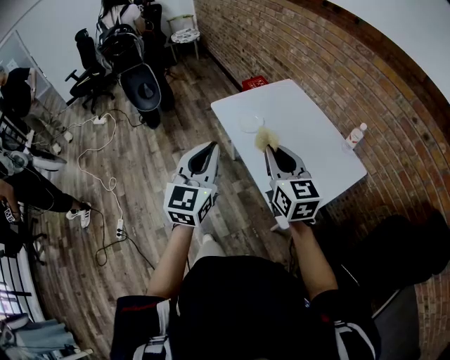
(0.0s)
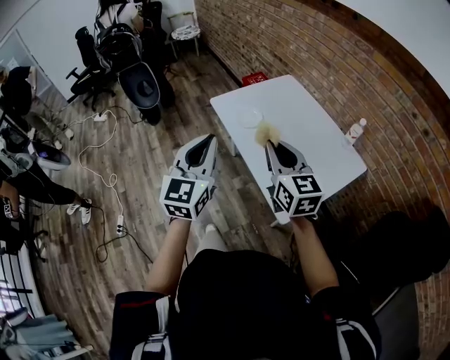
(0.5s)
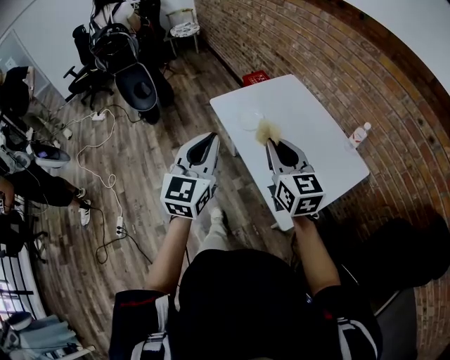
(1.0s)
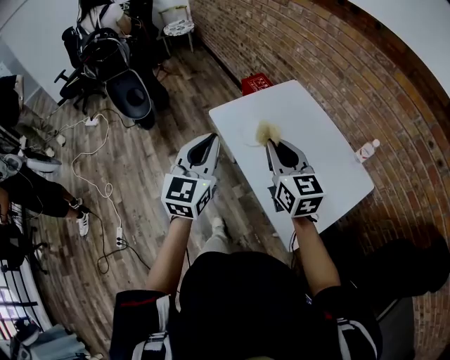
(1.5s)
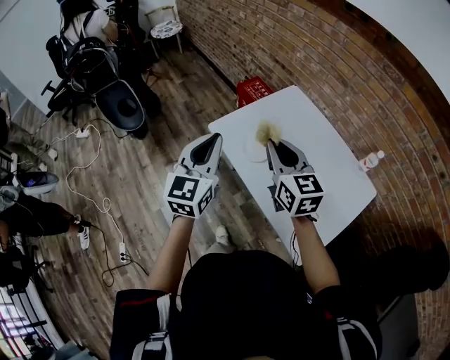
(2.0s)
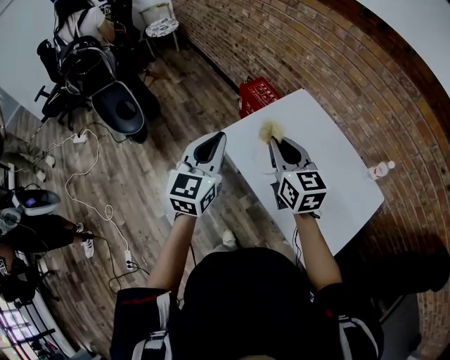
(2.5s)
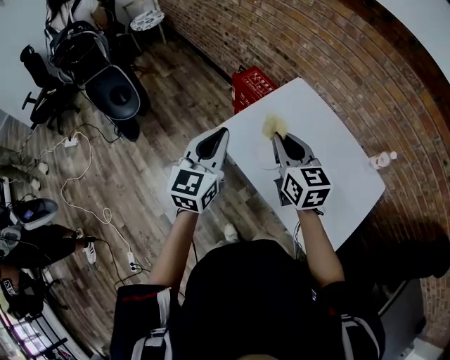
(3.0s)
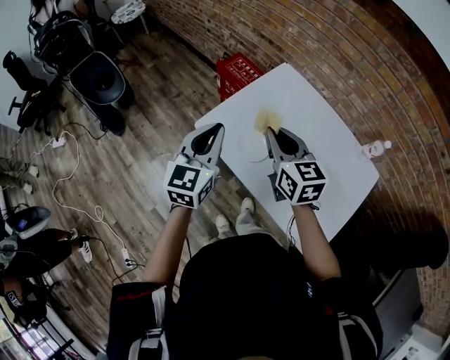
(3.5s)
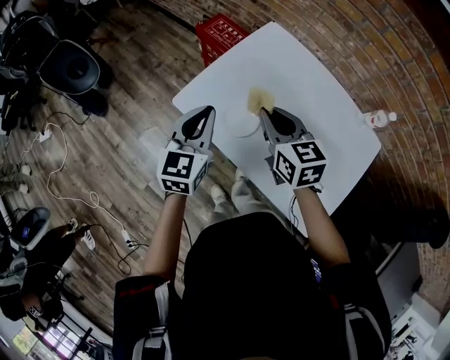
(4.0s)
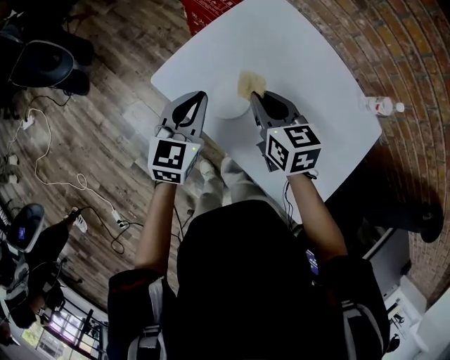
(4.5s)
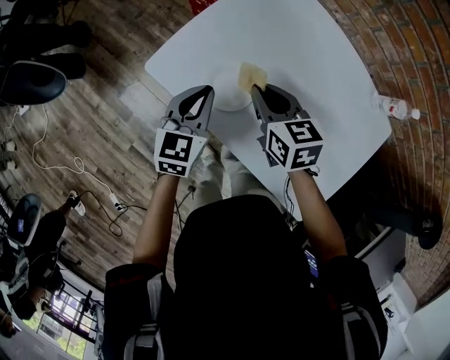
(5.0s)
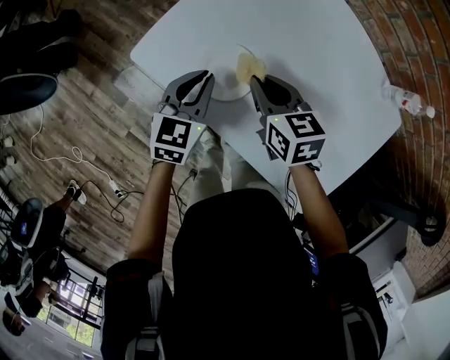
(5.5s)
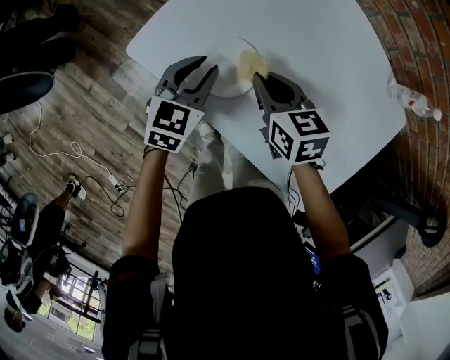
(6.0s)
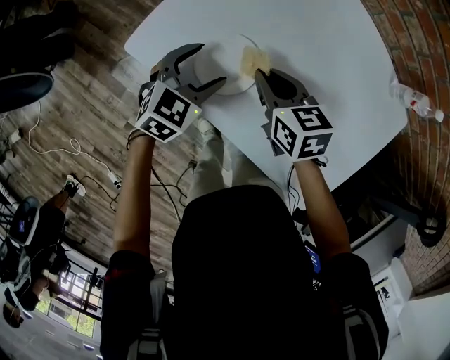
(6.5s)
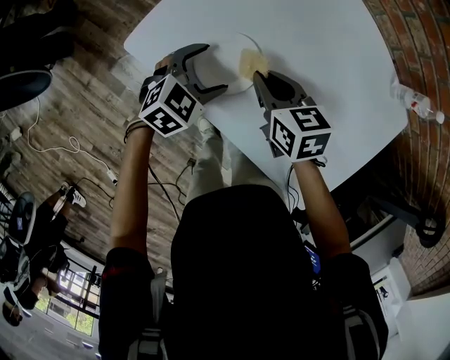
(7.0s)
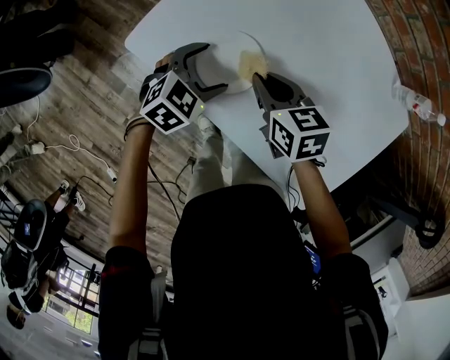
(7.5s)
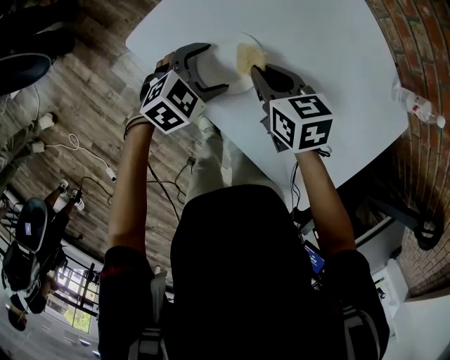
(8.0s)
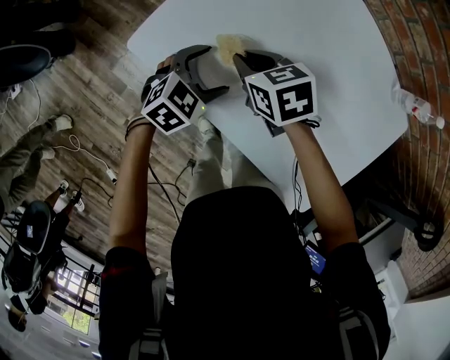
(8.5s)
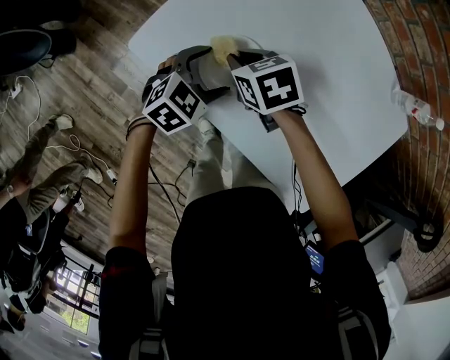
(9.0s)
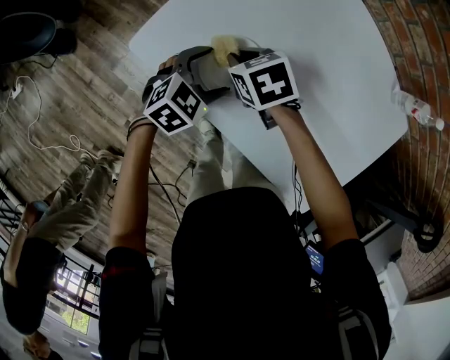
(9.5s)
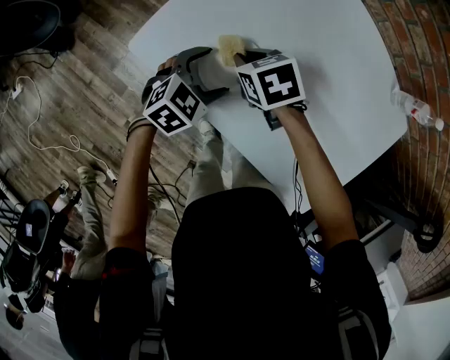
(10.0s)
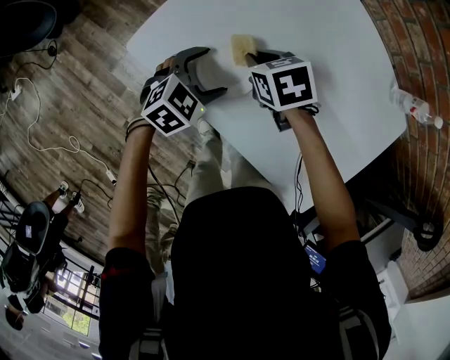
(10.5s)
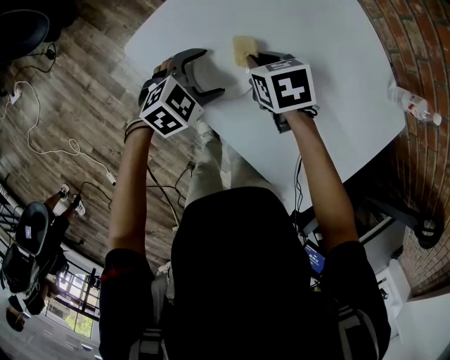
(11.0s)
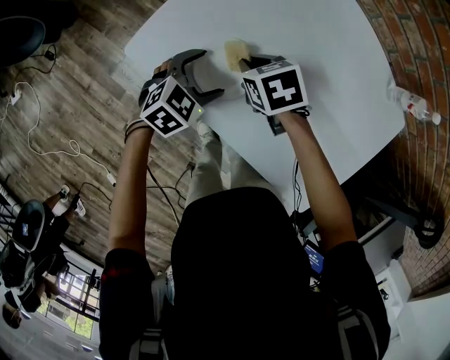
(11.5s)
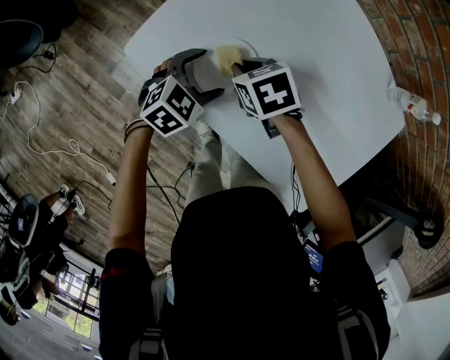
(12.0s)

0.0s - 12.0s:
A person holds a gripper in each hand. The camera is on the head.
0.0s - 2.0s: Both grippers move forward, roughly 25 cm.
2.0s - 4.0s: The left gripper shifts roughly 20 cm forward and downward. The right gripper is displaced downward and forward by roughly 20 cm.
4.0s - 6.0s: Both grippers move downward, about 20 cm. The left gripper swivels roughly 20 degrees.
6.0s - 8.0s: The left gripper is displaced downward by about 5 cm, swivels some 30 degrees, and opens up.
8.0s - 10.0s: The right gripper moves roughly 5 cm.
10.0s - 12.0s: The grippers make only small movements.

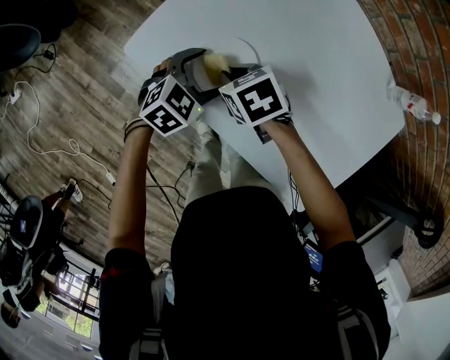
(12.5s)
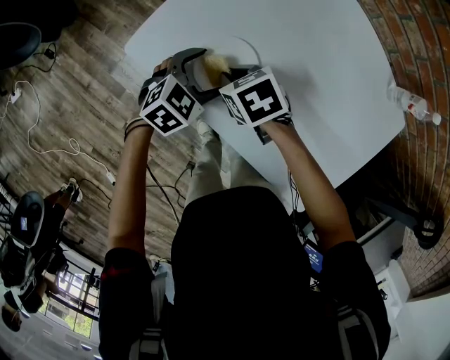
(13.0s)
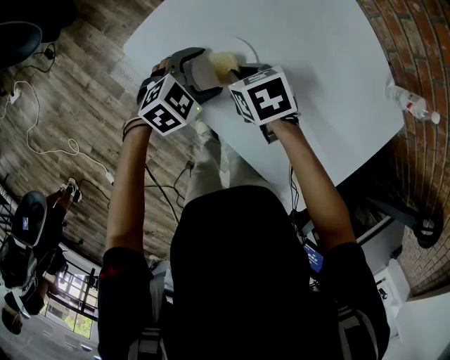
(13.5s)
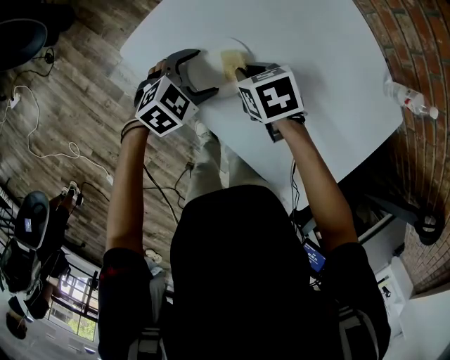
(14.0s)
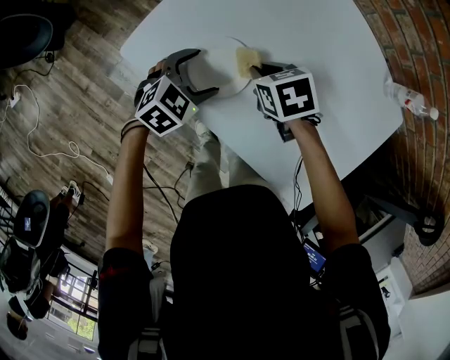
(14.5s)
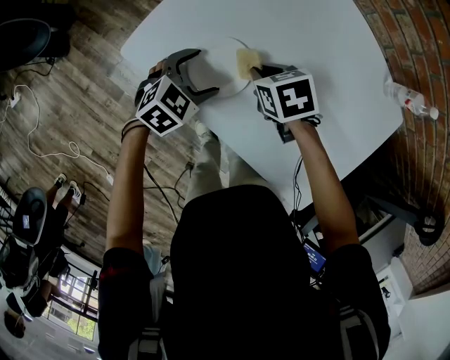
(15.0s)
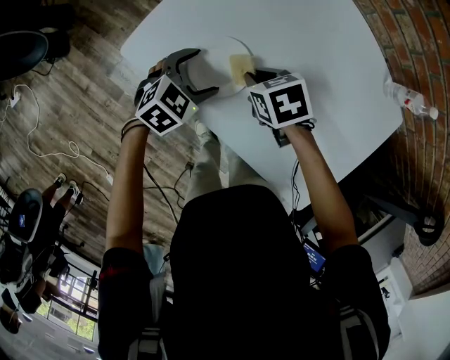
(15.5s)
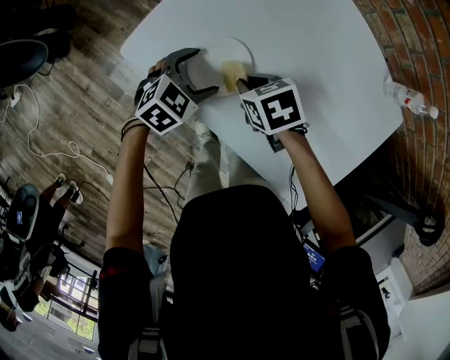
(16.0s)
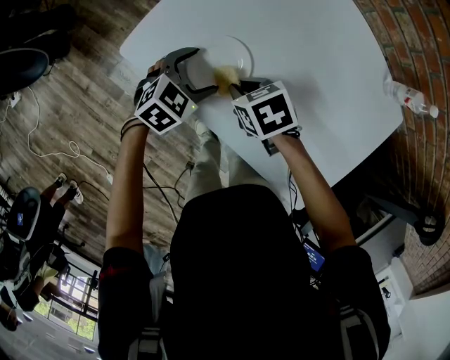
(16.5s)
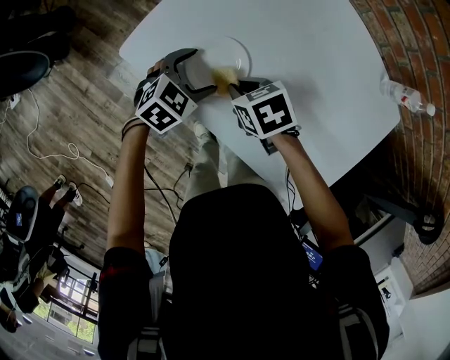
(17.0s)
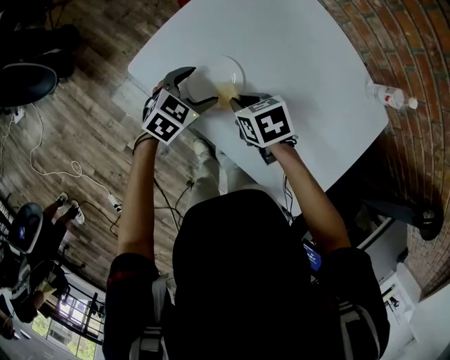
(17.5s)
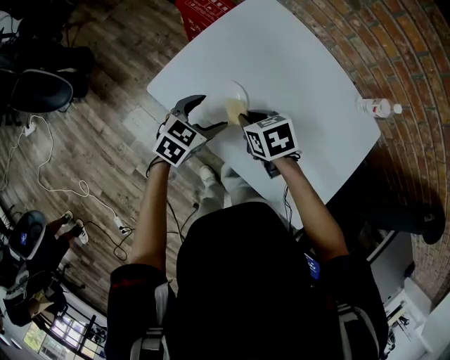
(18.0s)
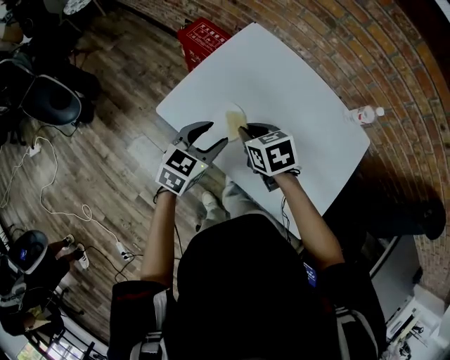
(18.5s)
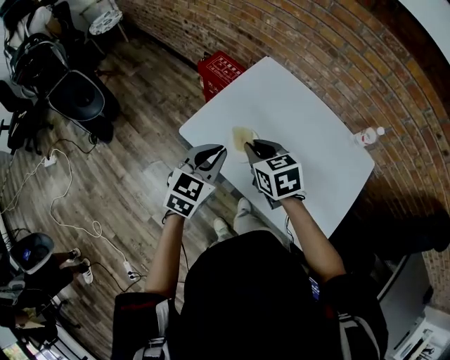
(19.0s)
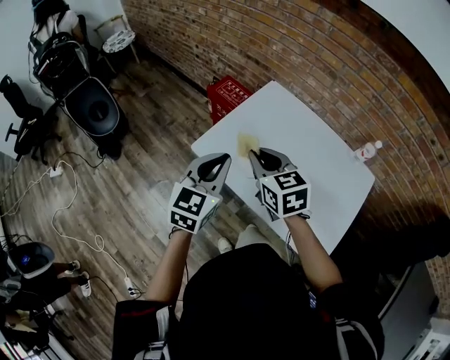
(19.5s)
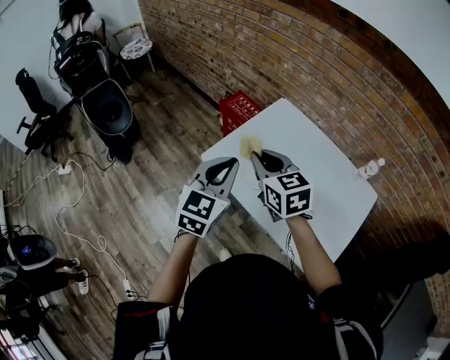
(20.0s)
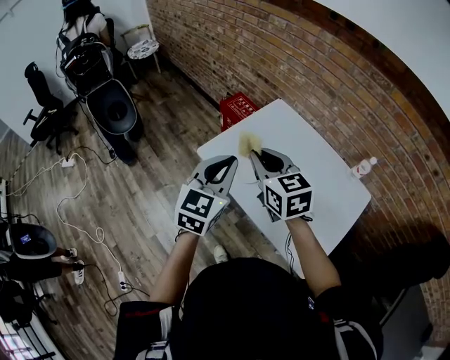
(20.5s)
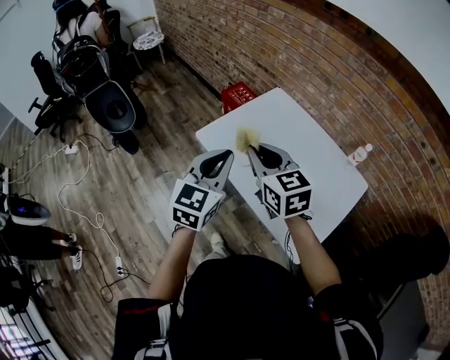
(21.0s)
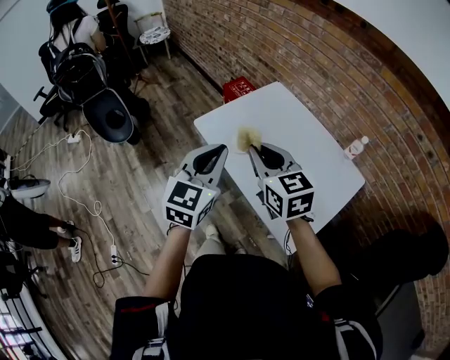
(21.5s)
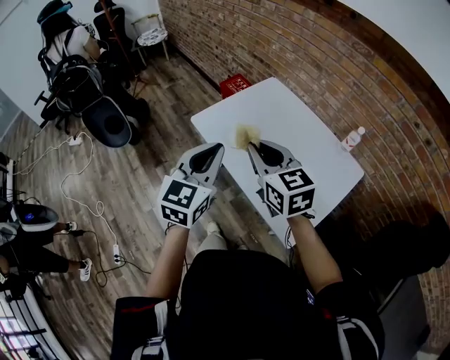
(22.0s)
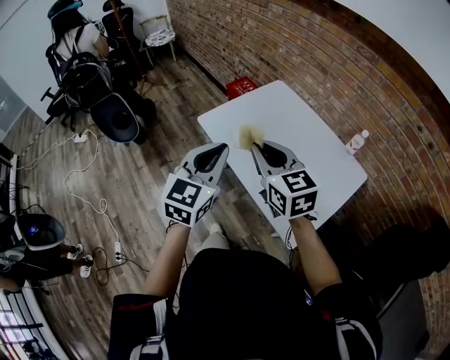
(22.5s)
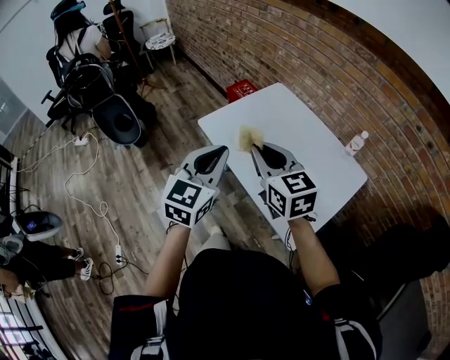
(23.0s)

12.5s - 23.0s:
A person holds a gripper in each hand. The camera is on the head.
12.5s - 14.5s: The right gripper shifts by about 10 cm.
14.5s - 16.5s: The right gripper moves approximately 5 cm.
16.5s - 19.0s: The two grippers go approximately 25 cm upward. The right gripper changes its angle by about 30 degrees, while the left gripper turns by approximately 30 degrees, and closes its fingers.
19.0s - 21.0s: Both grippers move upward and backward, some 20 cm. The left gripper rotates approximately 20 degrees; the right gripper swivels some 20 degrees.
21.0s - 23.0s: The two grippers go some 10 cm backward.

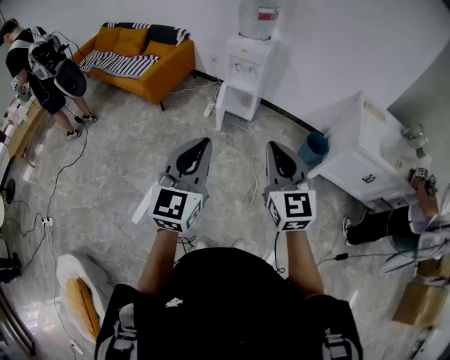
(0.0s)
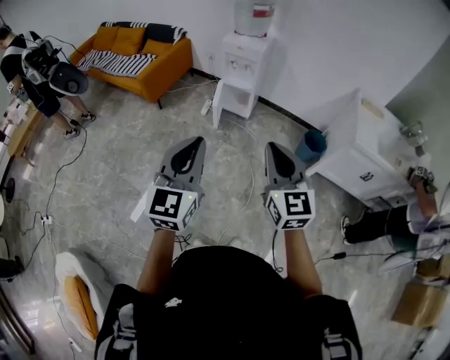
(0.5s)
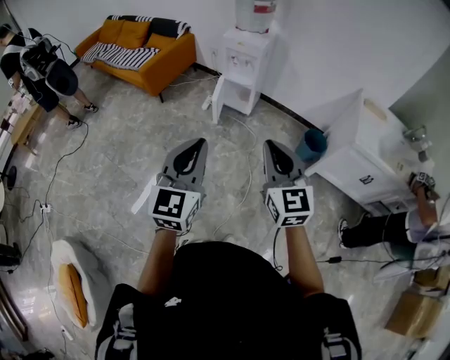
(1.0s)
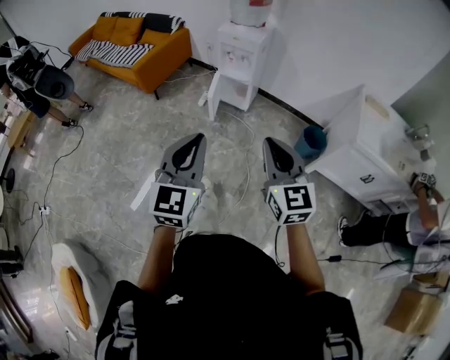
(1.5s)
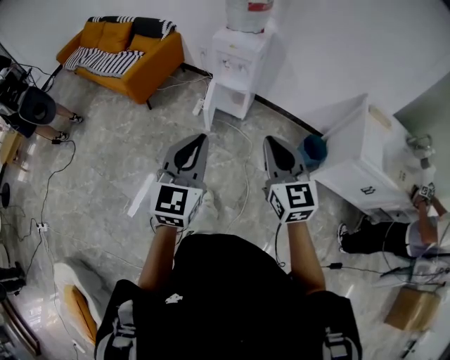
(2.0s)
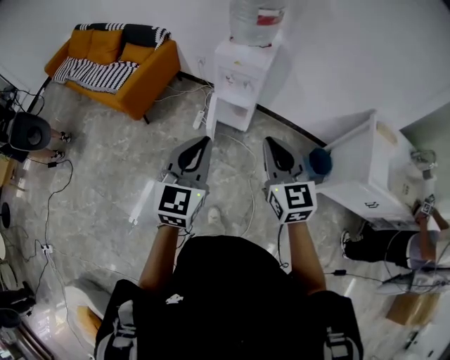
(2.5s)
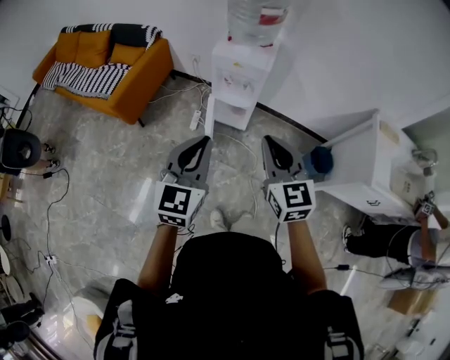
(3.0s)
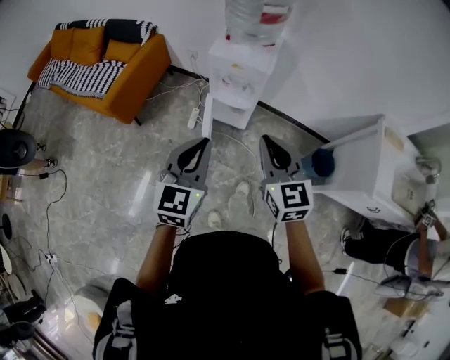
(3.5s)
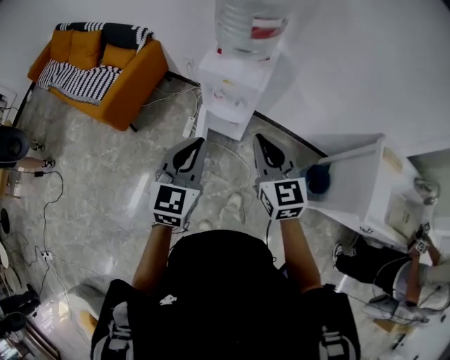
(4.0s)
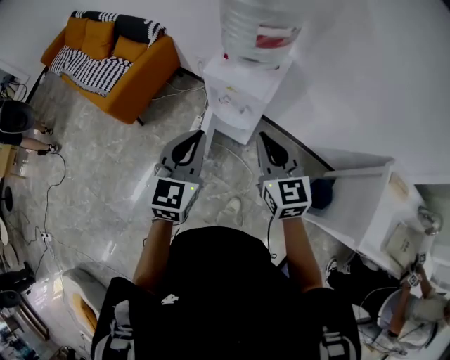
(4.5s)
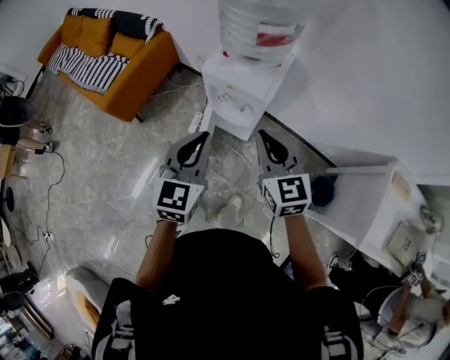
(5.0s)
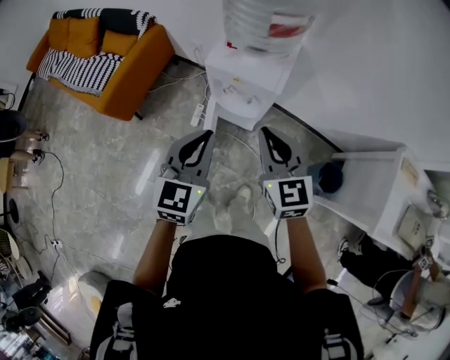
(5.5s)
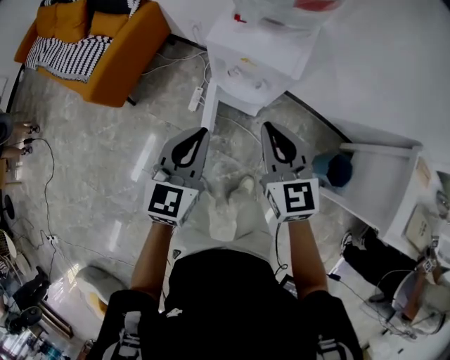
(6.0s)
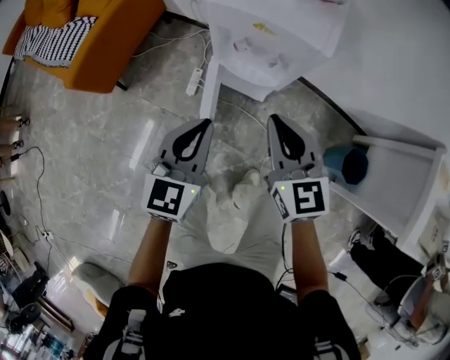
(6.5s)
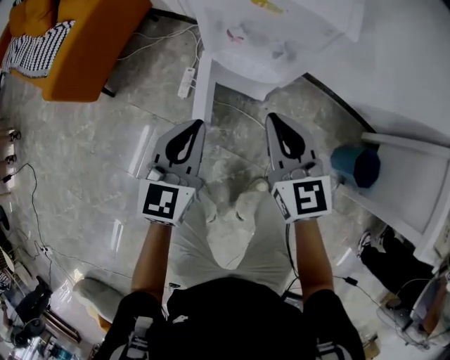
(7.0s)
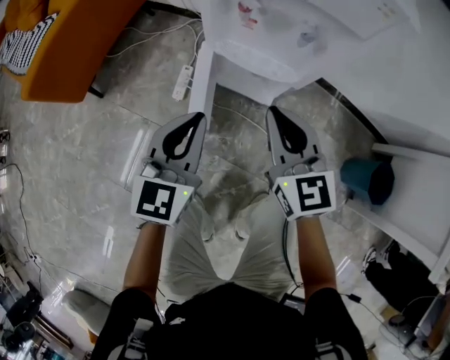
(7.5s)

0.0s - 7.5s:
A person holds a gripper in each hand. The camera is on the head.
0.0s - 2.0s: The two grippers go roughly 15 cm forward.
2.0s - 4.0s: Both grippers travel together forward, roughly 40 cm.
4.0s - 5.5s: The grippers both shift forward by some 10 cm.
5.5s - 7.5s: Both grippers travel together downward, approximately 40 cm.
